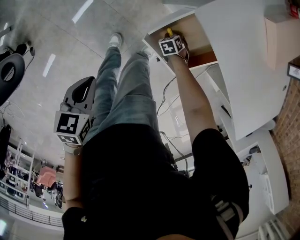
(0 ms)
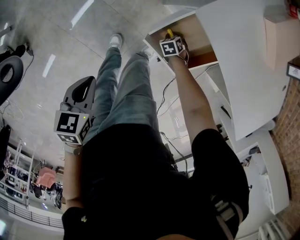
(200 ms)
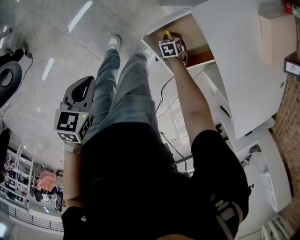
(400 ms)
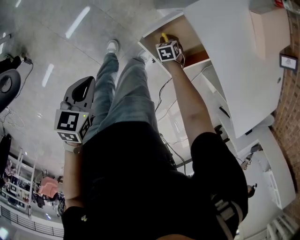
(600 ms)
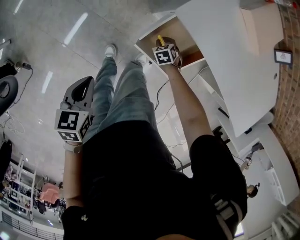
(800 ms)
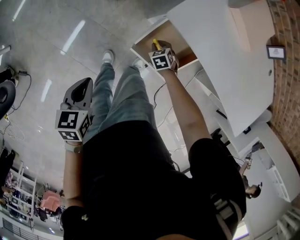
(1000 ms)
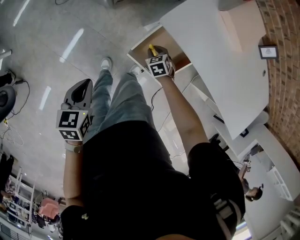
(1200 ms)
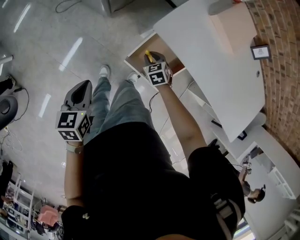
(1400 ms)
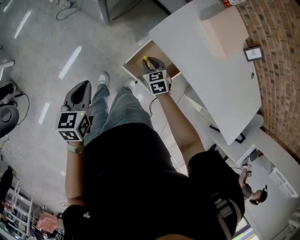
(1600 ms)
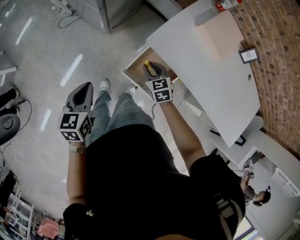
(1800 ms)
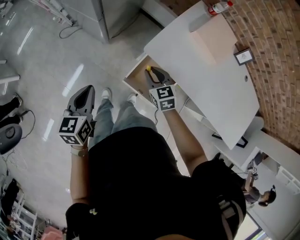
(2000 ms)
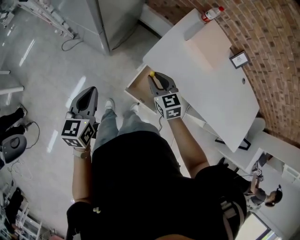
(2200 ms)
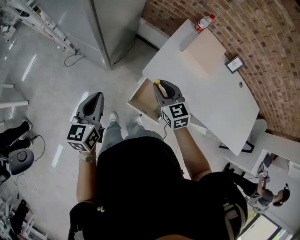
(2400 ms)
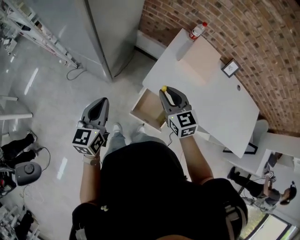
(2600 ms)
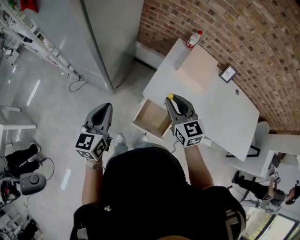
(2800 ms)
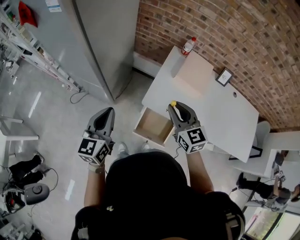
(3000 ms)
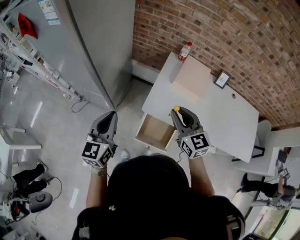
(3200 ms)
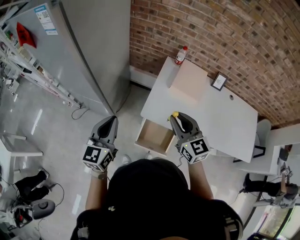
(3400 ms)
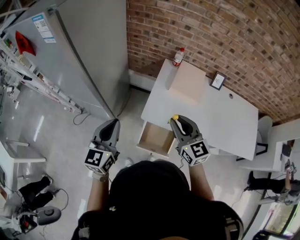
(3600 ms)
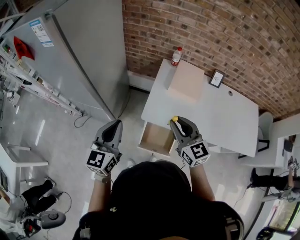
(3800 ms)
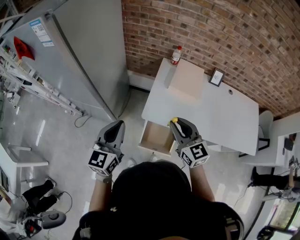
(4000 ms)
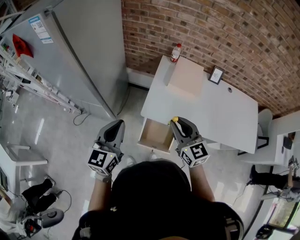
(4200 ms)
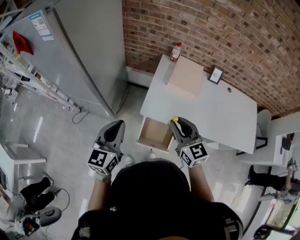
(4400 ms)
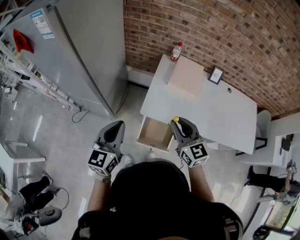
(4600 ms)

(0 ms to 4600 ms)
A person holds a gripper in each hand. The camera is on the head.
0 ms - 1600 ms: The right gripper shifts about 30 cm upward, and rotates roughly 30 degrees; the left gripper goes roughly 15 cm upward.
1600 ms - 3000 ms: The left gripper travels upward and forward by some 30 cm, and tilts its fingers about 30 degrees upward. The right gripper goes some 40 cm upward, and tips its fingers upward by roughly 30 degrees.
3000 ms - 4600 ms: The left gripper travels to the right by about 5 cm, while the right gripper shifts some 5 cm backward.

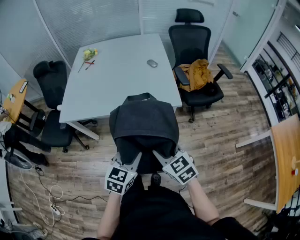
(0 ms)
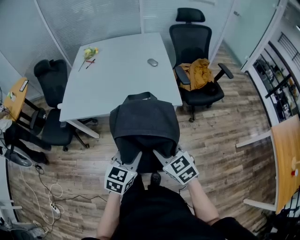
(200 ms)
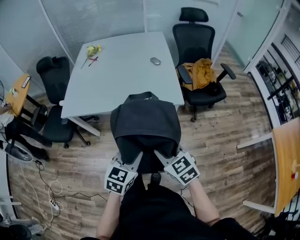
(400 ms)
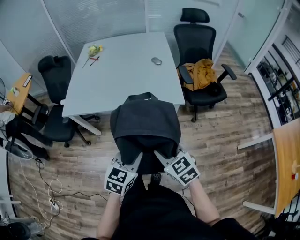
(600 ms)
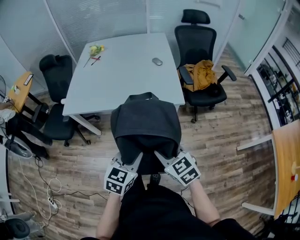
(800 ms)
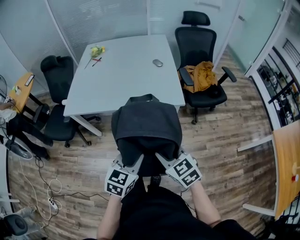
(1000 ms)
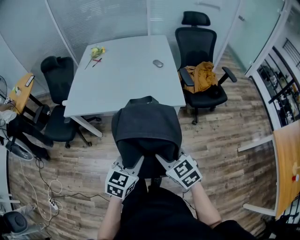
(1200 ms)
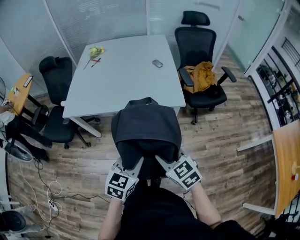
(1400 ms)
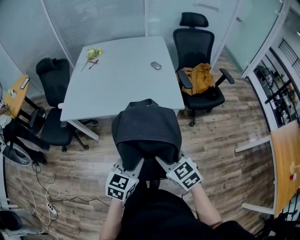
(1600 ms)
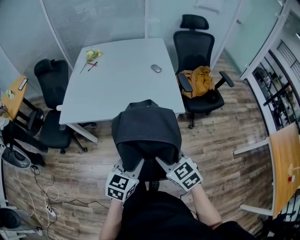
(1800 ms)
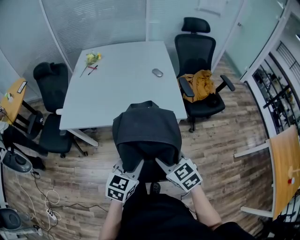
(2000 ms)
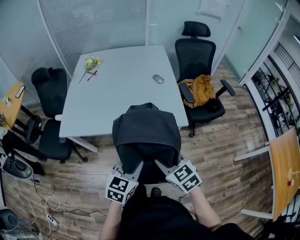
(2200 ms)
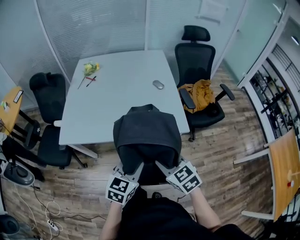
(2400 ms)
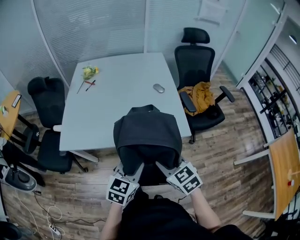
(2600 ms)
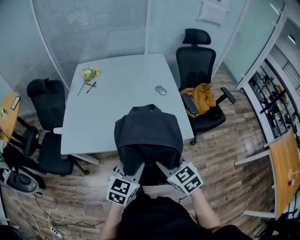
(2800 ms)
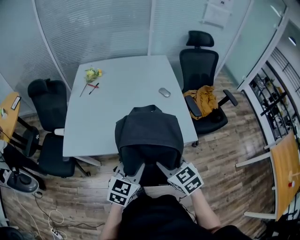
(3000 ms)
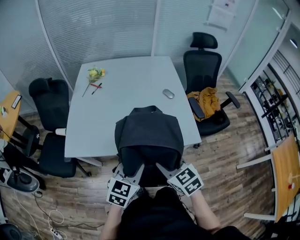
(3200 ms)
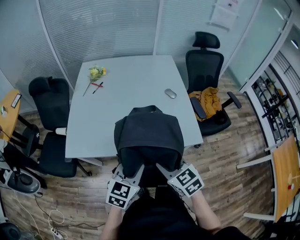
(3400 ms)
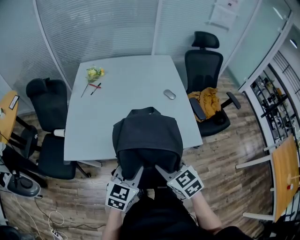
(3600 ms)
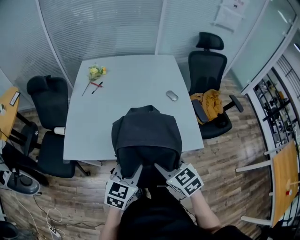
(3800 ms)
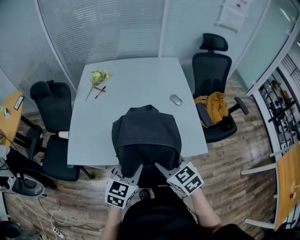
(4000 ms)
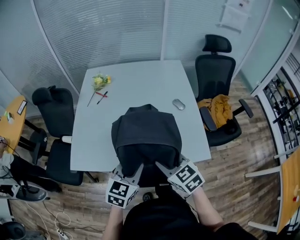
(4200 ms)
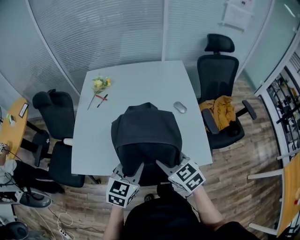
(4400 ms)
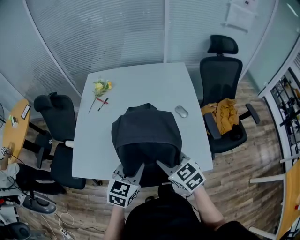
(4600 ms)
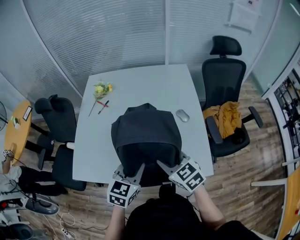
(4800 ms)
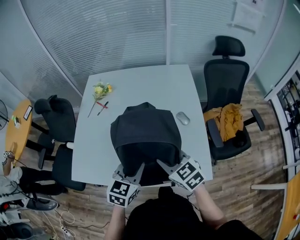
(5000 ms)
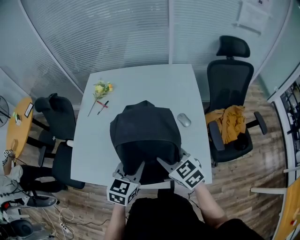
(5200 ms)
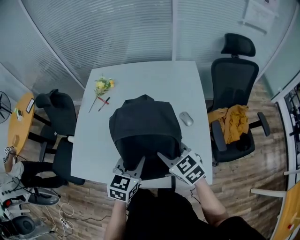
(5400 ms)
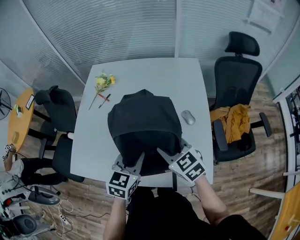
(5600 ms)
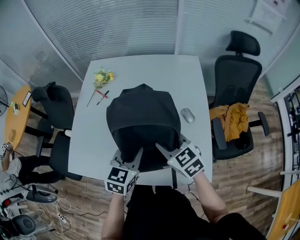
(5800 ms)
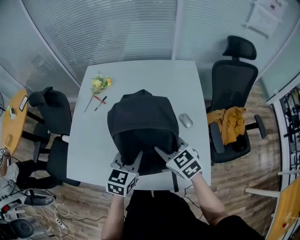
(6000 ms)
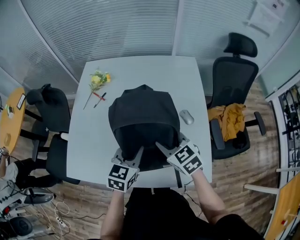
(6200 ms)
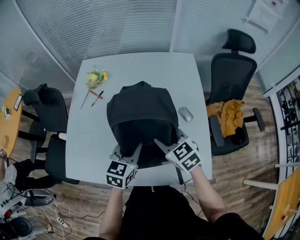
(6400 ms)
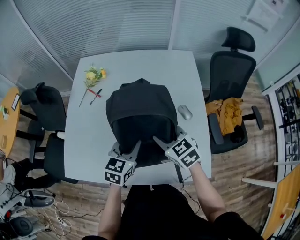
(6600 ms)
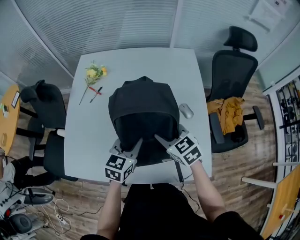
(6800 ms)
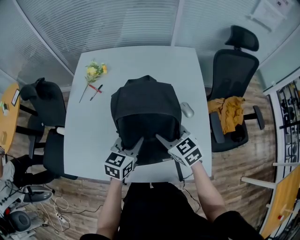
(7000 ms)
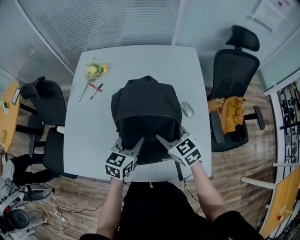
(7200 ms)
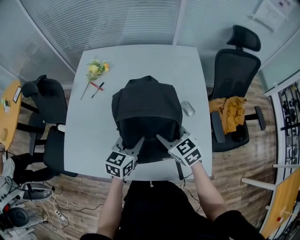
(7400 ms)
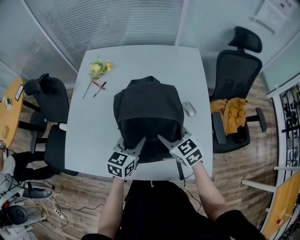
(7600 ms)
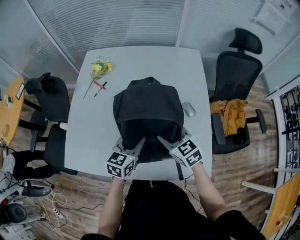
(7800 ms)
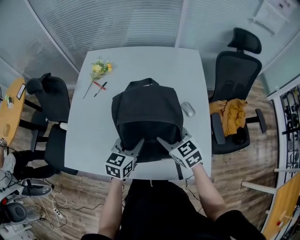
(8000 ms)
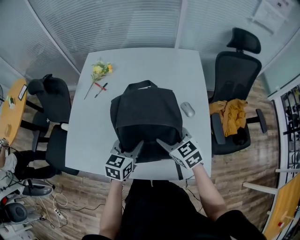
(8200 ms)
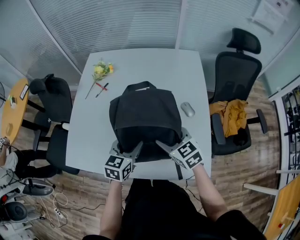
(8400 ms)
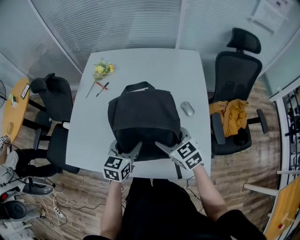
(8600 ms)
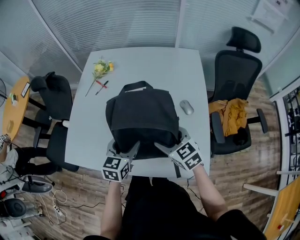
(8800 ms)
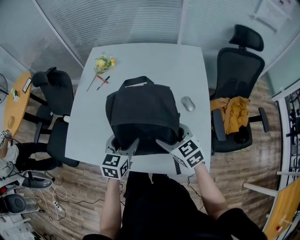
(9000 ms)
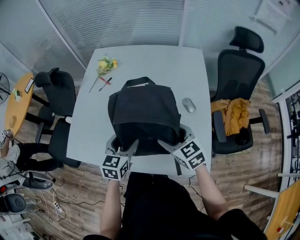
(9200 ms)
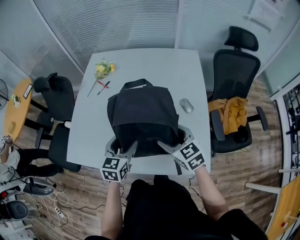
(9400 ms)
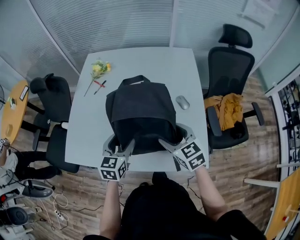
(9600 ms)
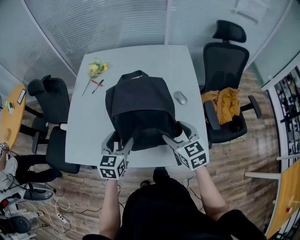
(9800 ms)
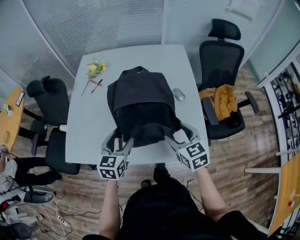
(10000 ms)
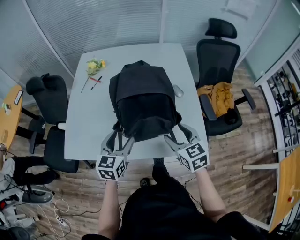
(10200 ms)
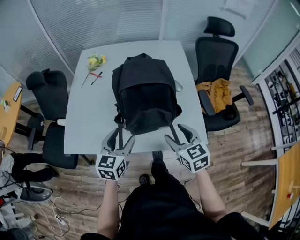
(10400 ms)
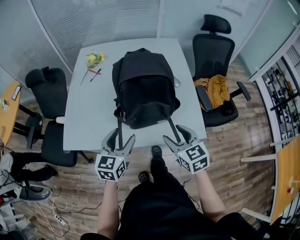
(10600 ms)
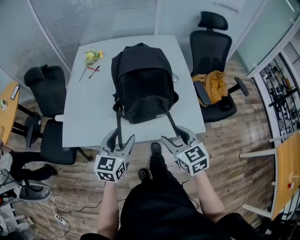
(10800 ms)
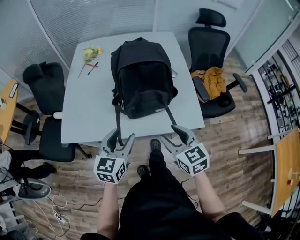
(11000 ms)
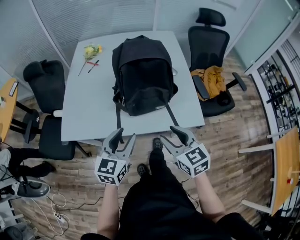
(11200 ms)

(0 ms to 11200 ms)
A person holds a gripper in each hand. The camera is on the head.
0 ms - 1600 ms: The grippers move only a little.
1600 ms - 3200 ms: Both grippers move forward and to the left, roughly 25 cm.
3200 ms - 4800 ms: The two grippers go roughly 20 cm forward.
4800 ms - 6400 ms: The two grippers go approximately 15 cm forward.
6400 ms - 8000 ms: There are only small adjustments of the grippers.
8000 ms - 9600 ms: The right gripper goes some 5 cm backward; the left gripper goes roughly 5 cm to the left, and opens.
9600 ms - 11200 ms: Both grippers move backward, about 20 cm. The right gripper closes its fingers.

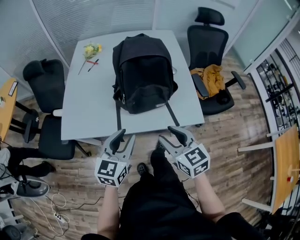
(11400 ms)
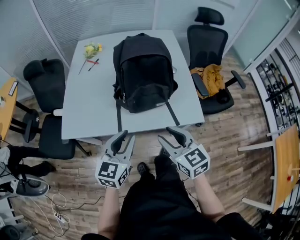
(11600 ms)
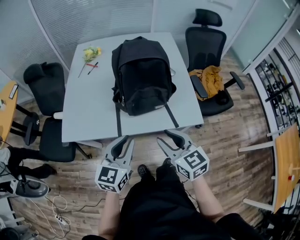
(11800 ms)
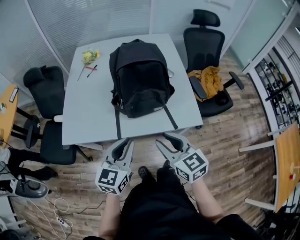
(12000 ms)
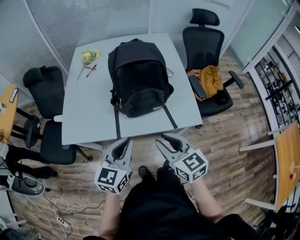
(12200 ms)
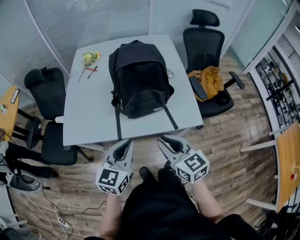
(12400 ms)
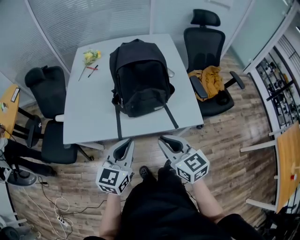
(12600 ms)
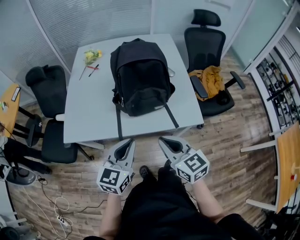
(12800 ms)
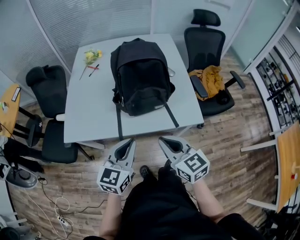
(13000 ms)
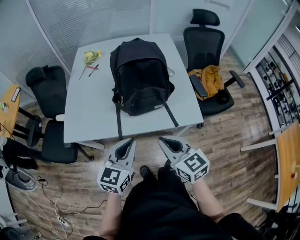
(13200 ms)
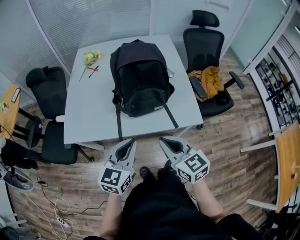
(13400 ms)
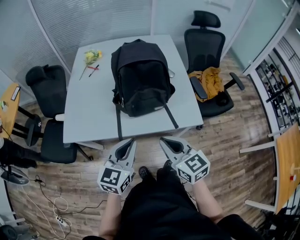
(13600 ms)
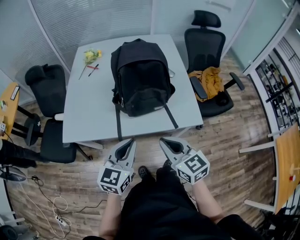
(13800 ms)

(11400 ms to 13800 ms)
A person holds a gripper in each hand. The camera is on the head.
11400 ms - 12600 ms: The right gripper closes, while the left gripper closes up.
12600 ms - 13800 ms: Neither gripper changes place.

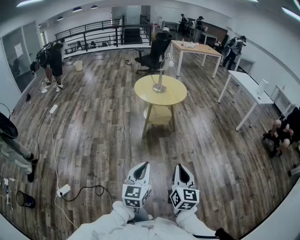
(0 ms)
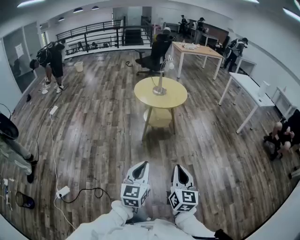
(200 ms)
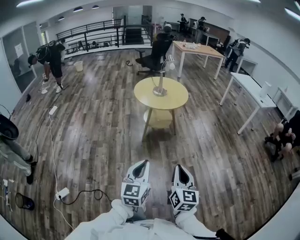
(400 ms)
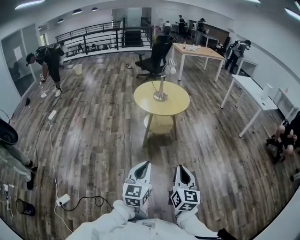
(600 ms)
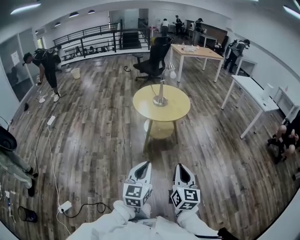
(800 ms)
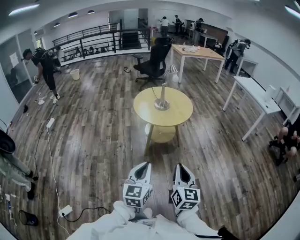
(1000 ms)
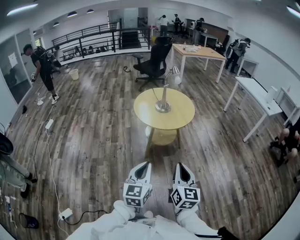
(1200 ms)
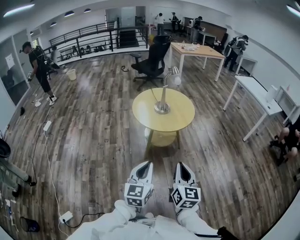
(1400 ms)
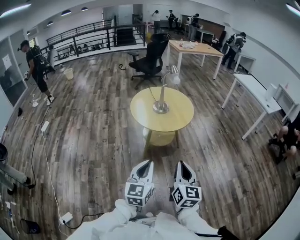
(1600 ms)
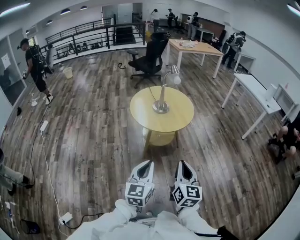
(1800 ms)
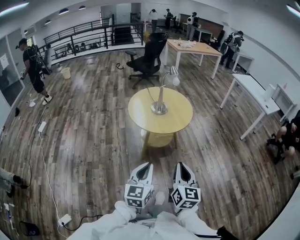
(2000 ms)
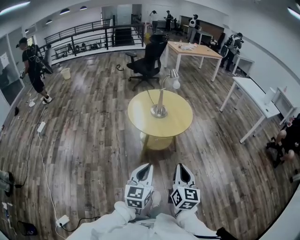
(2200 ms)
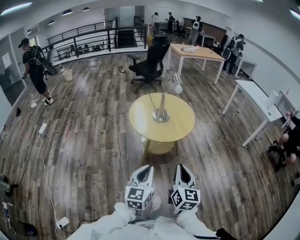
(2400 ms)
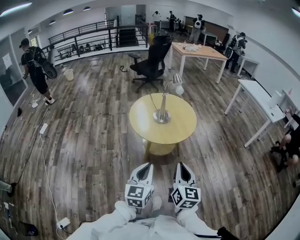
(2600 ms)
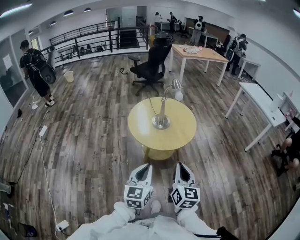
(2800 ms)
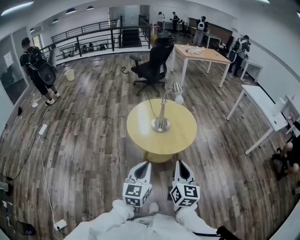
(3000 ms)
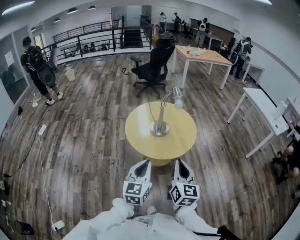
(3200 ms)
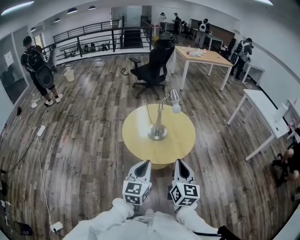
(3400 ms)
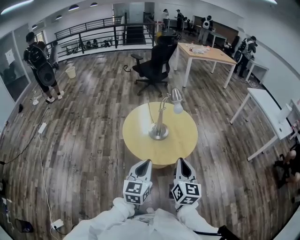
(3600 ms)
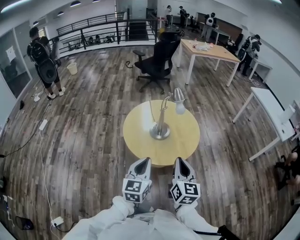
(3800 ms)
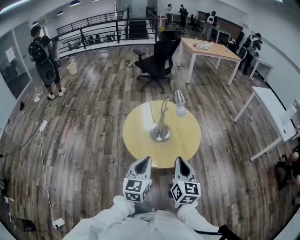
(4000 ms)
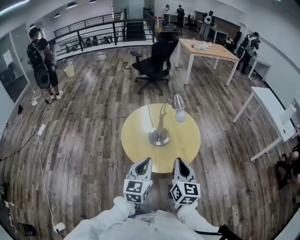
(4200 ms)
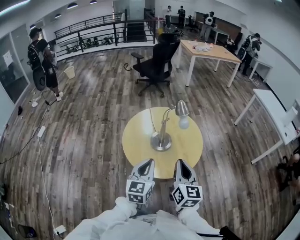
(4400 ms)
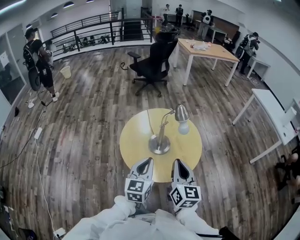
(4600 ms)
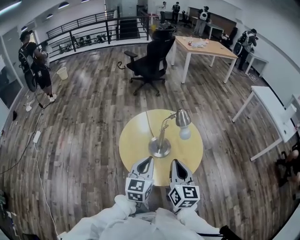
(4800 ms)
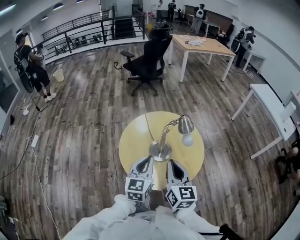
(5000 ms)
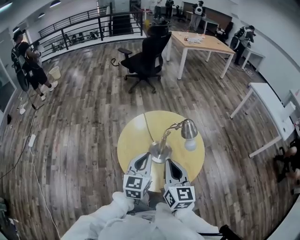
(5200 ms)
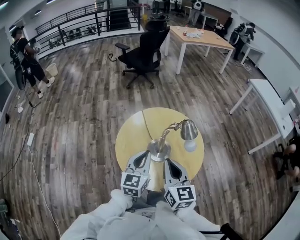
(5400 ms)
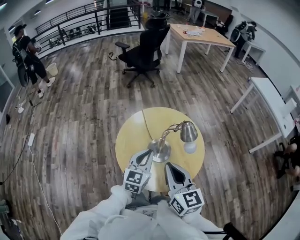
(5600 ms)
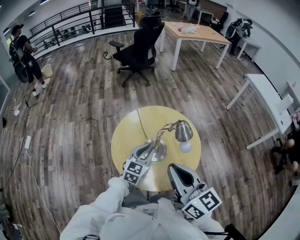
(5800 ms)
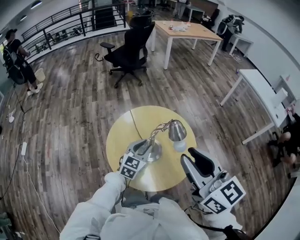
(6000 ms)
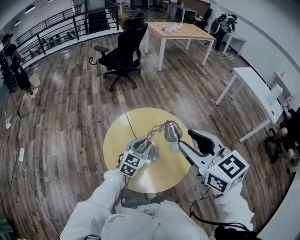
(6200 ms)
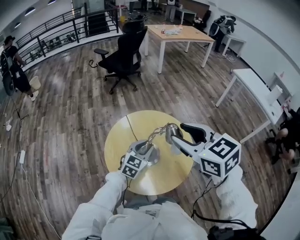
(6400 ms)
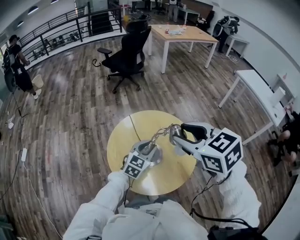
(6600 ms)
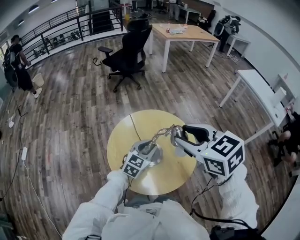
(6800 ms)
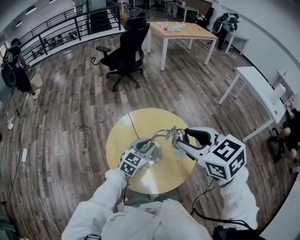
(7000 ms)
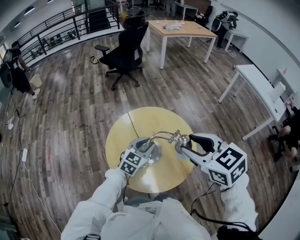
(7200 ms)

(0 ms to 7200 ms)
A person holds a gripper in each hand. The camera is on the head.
0 ms - 1400 ms: The two grippers go roughly 35 cm forward.
1400 ms - 2800 ms: The two grippers go about 20 cm forward.
2800 ms - 4400 ms: The two grippers go about 30 cm forward.
4400 ms - 5800 ms: The left gripper heads forward, covering roughly 20 cm, and swivels some 20 degrees; the right gripper travels forward, upward and to the left by some 15 cm, and rotates approximately 20 degrees.
5800 ms - 7200 ms: The left gripper ends up approximately 5 cm from where it was. The right gripper goes roughly 10 cm forward and to the right, tilts its fingers about 30 degrees downward, and opens.
